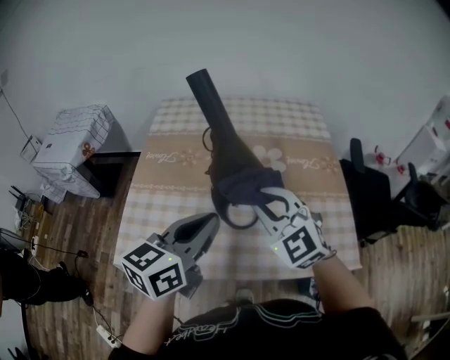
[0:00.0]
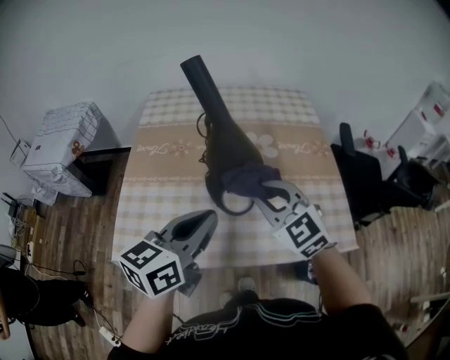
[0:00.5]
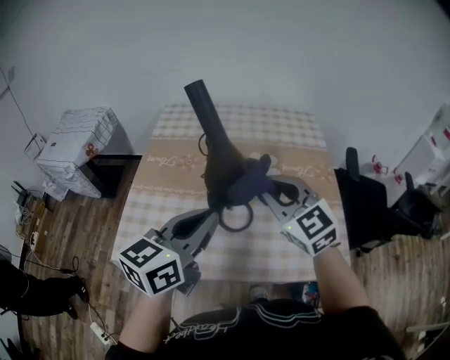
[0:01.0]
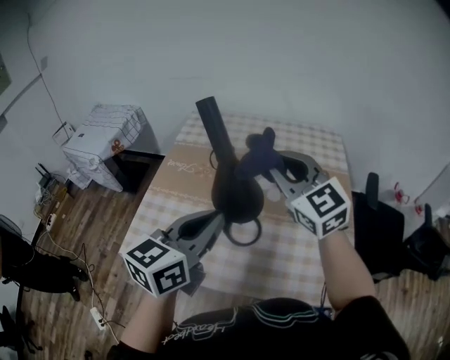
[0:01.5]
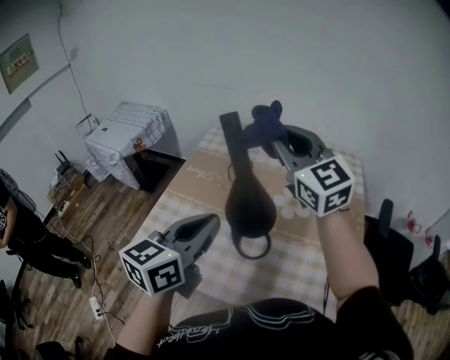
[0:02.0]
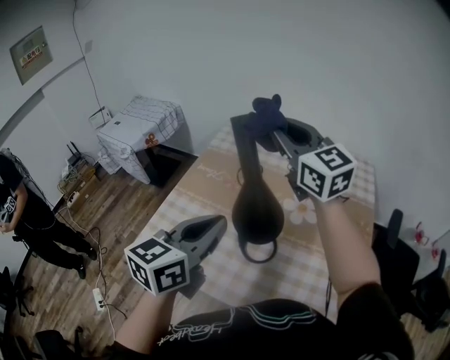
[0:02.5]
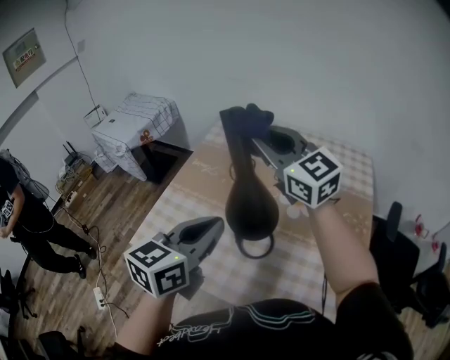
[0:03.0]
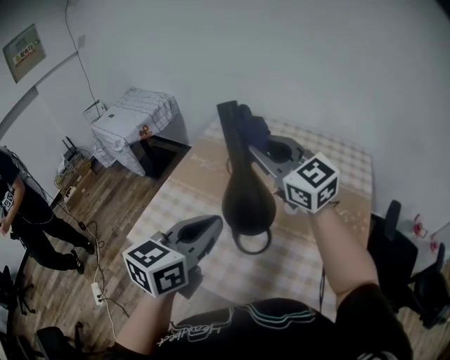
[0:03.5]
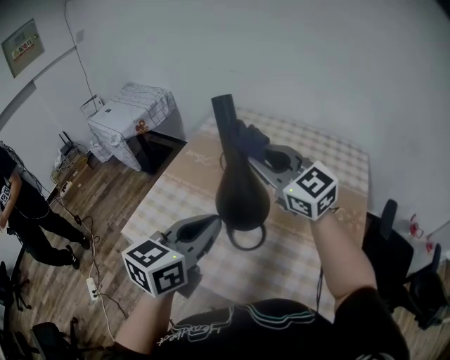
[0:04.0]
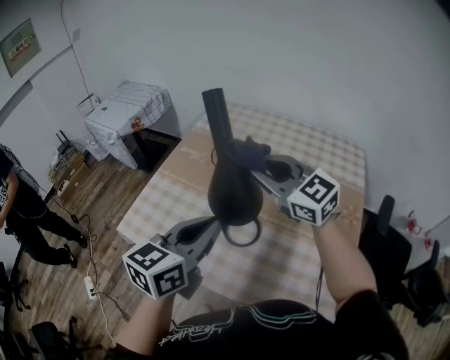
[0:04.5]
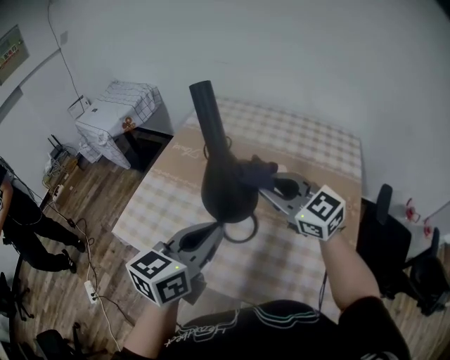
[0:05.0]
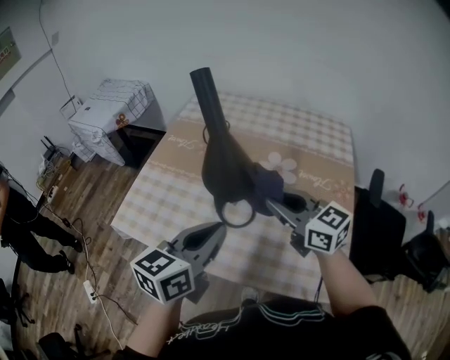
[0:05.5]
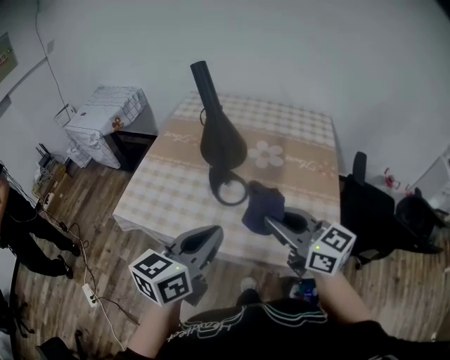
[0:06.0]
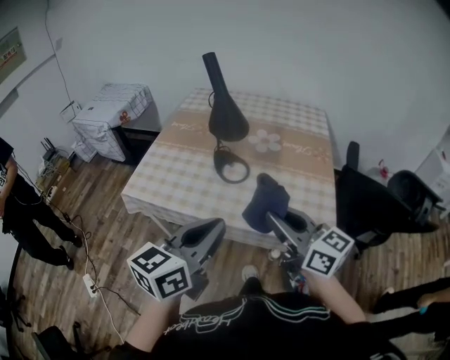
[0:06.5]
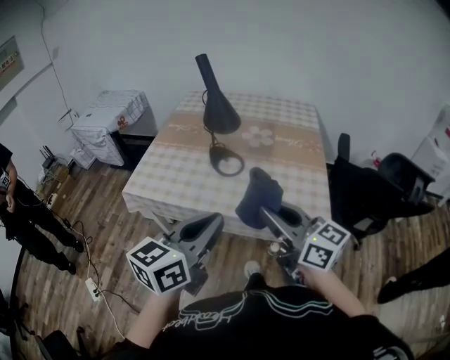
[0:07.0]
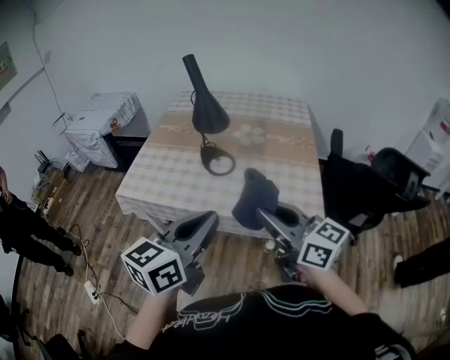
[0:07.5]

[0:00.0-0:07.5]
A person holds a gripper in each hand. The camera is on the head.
0:00.0 to 0:02.0: The right gripper is displaced upward and forward by about 25 cm, and rotates about 30 degrees, while the left gripper goes approximately 5 cm upward, and turns by about 20 degrees.
0:02.0 to 0:04.0: The right gripper heads downward, covering roughly 10 cm, and swivels about 20 degrees, while the left gripper moves about 5 cm.
0:04.0 to 0:05.5: The right gripper is displaced backward, downward and to the right by some 20 cm, and rotates about 20 degrees, while the left gripper is displaced backward by approximately 5 cm.
0:05.5 to 0:07.5: The grippers both shift backward by some 30 cm.

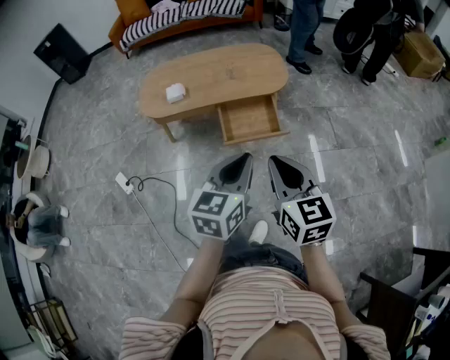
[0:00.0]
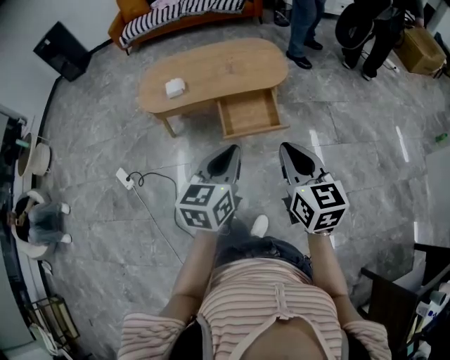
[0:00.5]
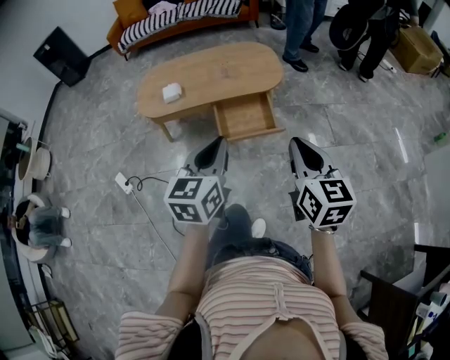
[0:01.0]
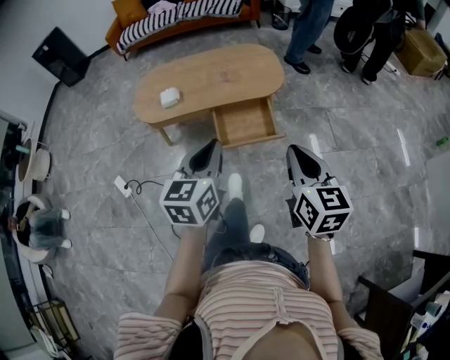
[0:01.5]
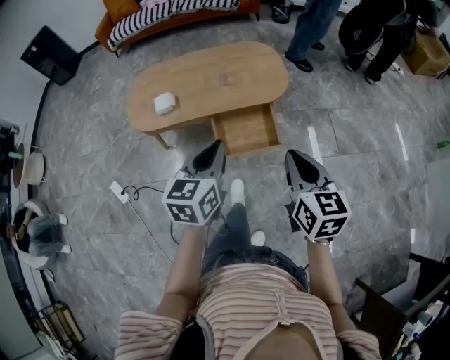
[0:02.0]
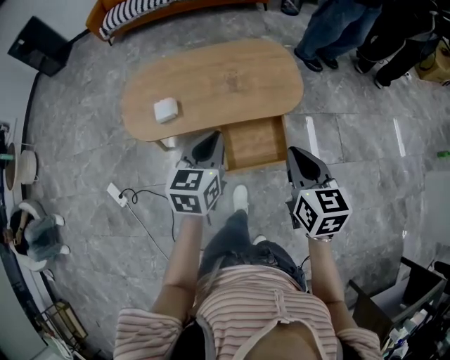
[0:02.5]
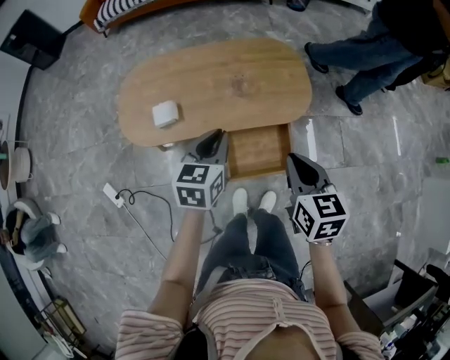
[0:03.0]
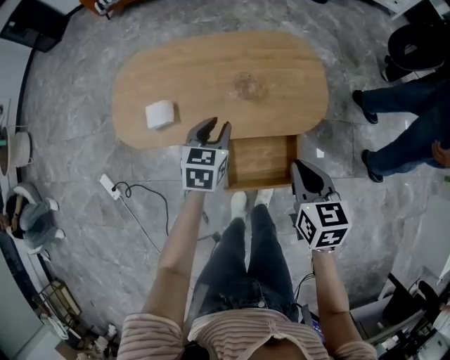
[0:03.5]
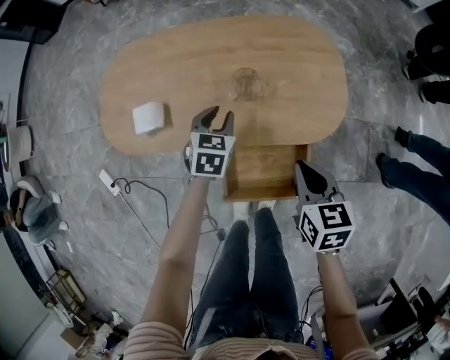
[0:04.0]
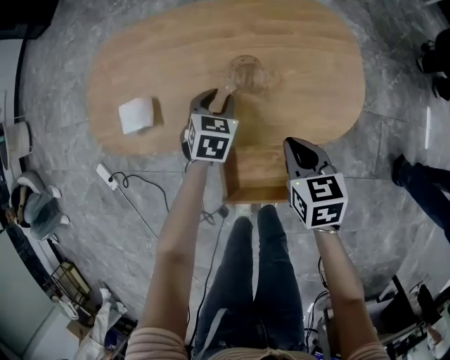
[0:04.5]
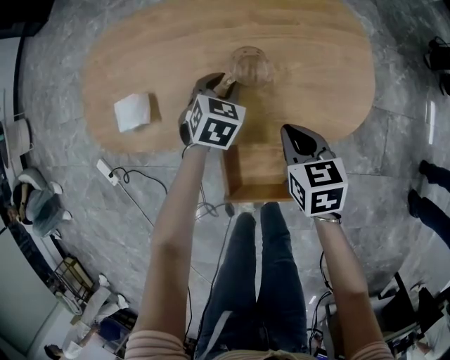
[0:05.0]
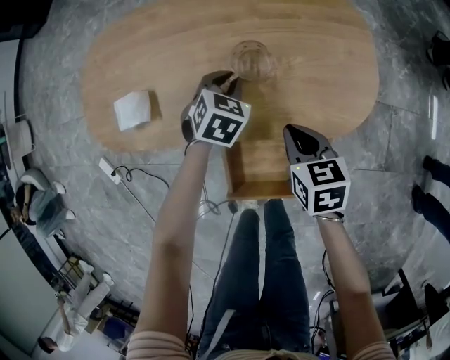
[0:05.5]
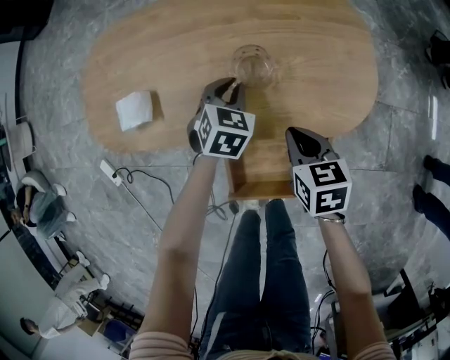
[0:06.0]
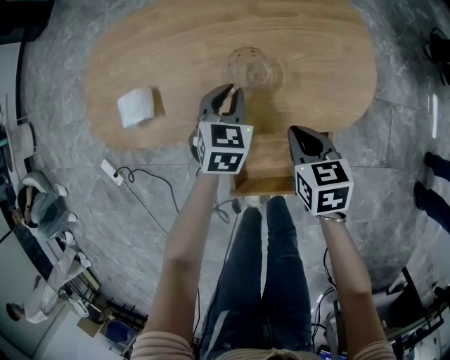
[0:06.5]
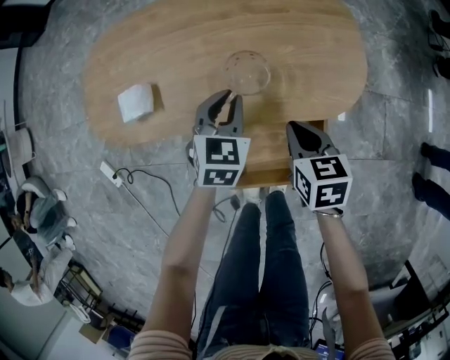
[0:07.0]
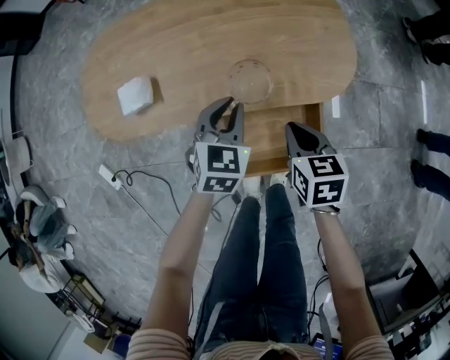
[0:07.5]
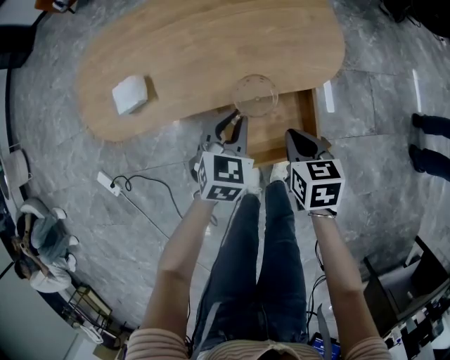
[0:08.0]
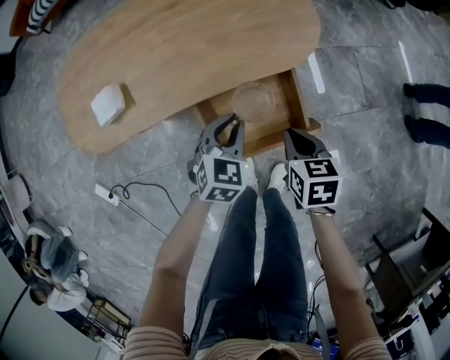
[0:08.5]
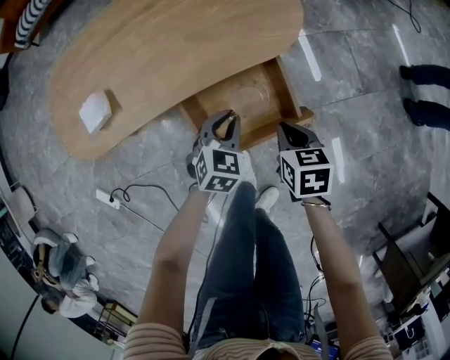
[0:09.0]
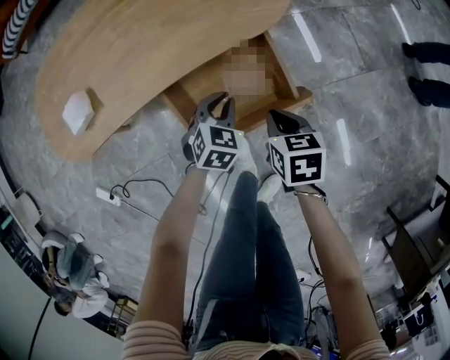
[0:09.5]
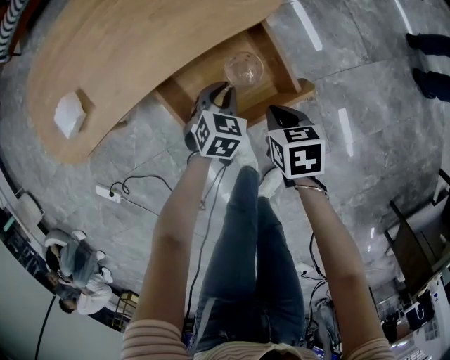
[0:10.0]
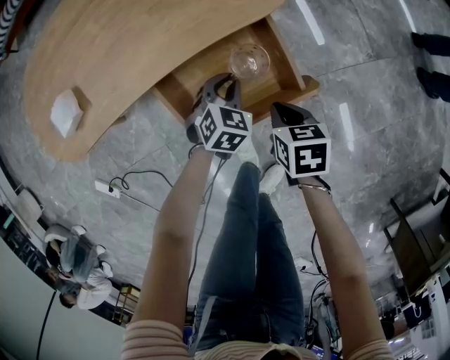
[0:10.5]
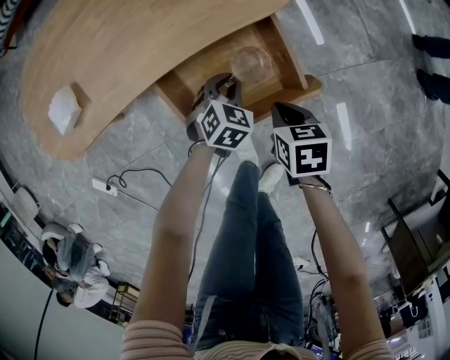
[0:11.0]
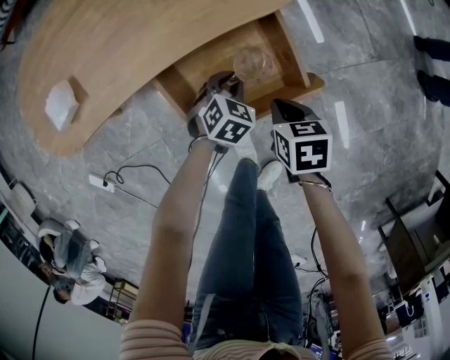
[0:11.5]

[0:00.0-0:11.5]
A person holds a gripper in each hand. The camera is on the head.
0:00.0 to 0:02.0: The two grippers go approximately 15 cm forward.
0:02.0 to 0:04.0: The two grippers go approximately 50 cm forward and downward. The right gripper turns by approximately 30 degrees; the left gripper turns by about 30 degrees, and opens up.
0:04.0 to 0:06.0: The left gripper moves downward, about 10 cm. The right gripper is displaced downward and forward by roughly 15 cm.
0:06.0 to 0:07.5: The left gripper shifts about 15 cm backward and upward, while the right gripper is displaced backward by some 10 cm.
0:07.5 to 0:09.5: The left gripper moves downward, to the right and backward, about 25 cm, and changes its angle by approximately 30 degrees, while the right gripper goes roughly 20 cm backward, downward and to the right, and turns by about 20 degrees.
0:09.5 to 0:11.5: The two grippers go about 5 cm downward.

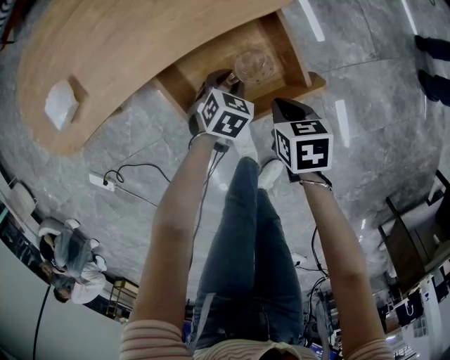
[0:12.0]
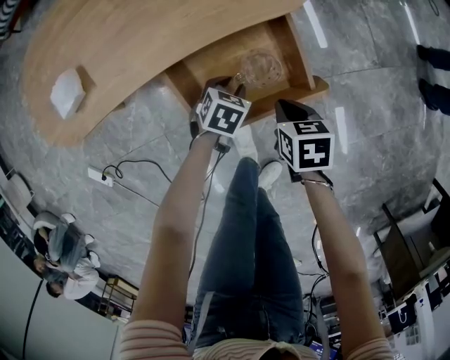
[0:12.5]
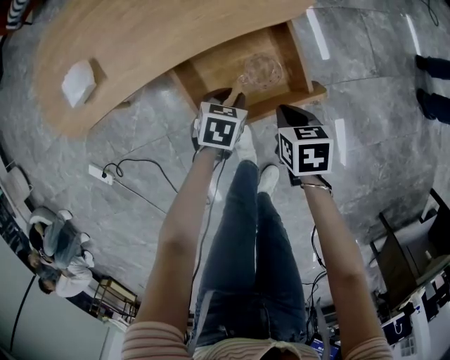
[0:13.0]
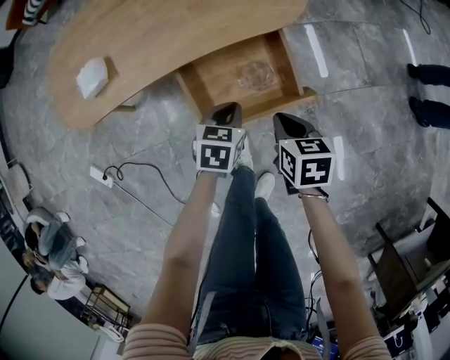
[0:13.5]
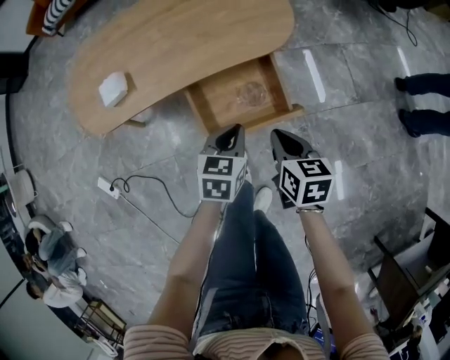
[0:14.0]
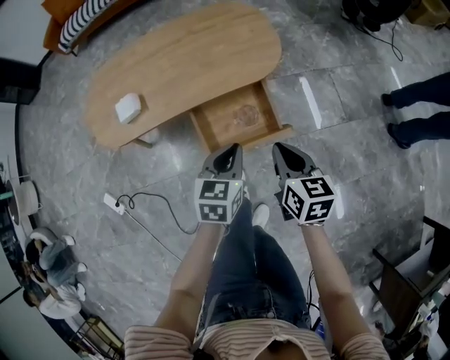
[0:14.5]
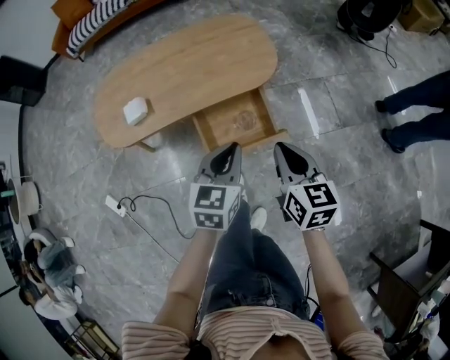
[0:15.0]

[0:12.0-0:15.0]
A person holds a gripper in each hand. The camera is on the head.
0:12.0 to 0:13.5: The right gripper travels upward by roughly 10 cm, while the left gripper moves upward and backward, about 15 cm, and swivels about 30 degrees.
0:13.5 to 0:15.0: Both grippers move upward, about 30 cm. The right gripper changes its angle by roughly 30 degrees. The left gripper turns by some 30 degrees.

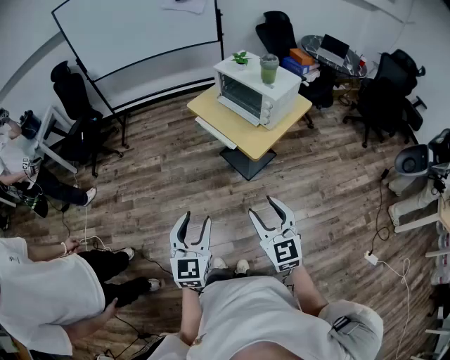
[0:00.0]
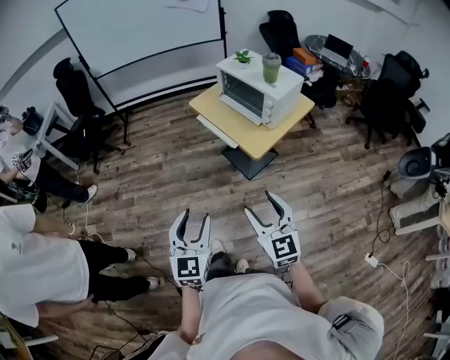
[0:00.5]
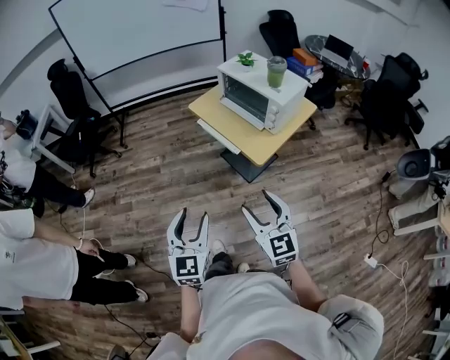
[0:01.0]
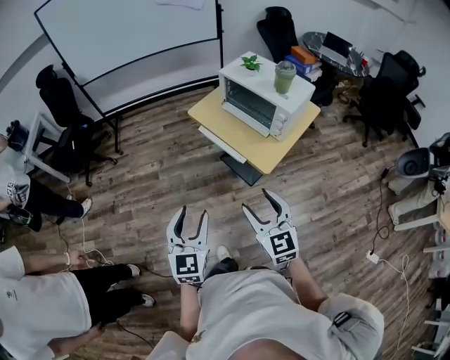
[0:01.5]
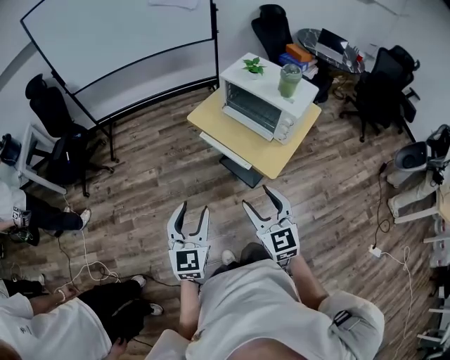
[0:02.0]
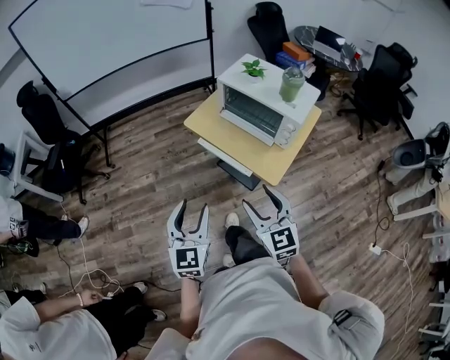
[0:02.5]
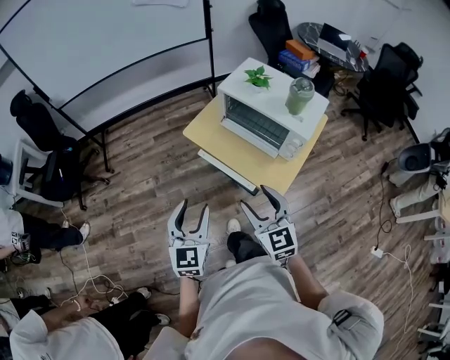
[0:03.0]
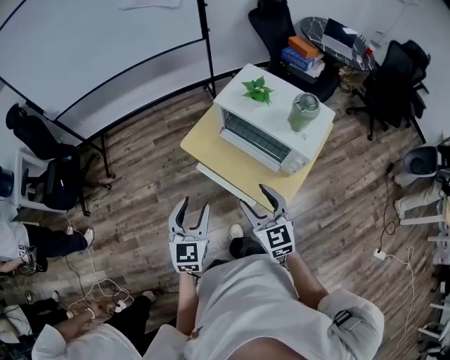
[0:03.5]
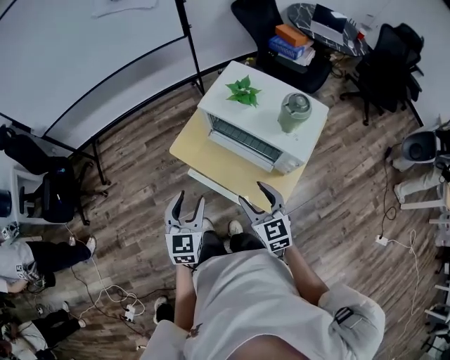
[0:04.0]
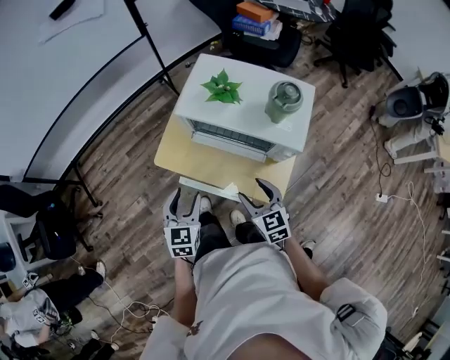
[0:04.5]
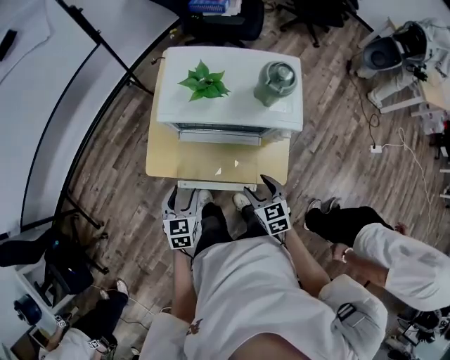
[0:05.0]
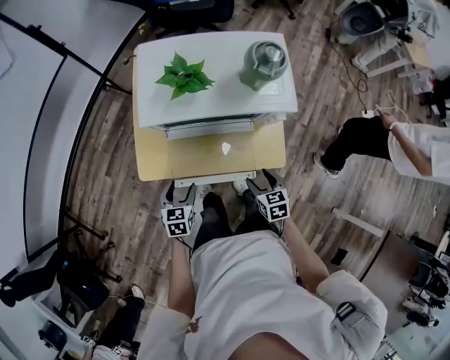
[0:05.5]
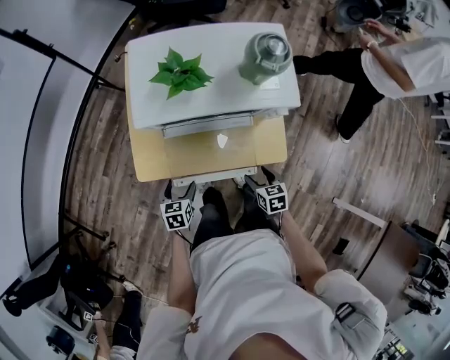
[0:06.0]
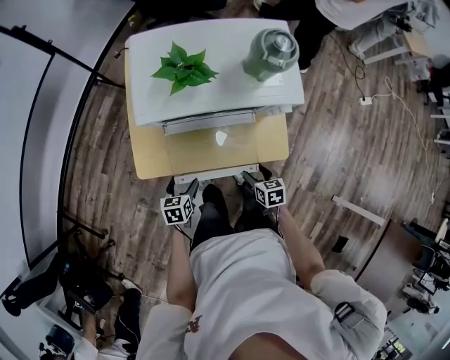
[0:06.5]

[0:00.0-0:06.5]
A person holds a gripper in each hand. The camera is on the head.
0:00.0 to 0:02.0: The right gripper shifts roughly 25 cm forward and to the left; the left gripper is displaced forward by roughly 25 cm.
0:02.0 to 0:04.5: The right gripper heads forward and downward, covering about 35 cm, and turns by some 30 degrees. Meanwhile the left gripper shifts roughly 40 cm forward, and changes its angle by some 30 degrees.
0:04.5 to 0:06.5: Both grippers travel together downward, some 25 cm. The right gripper rotates about 50 degrees. Meanwhile the left gripper turns by about 40 degrees, and opens its fingers.
